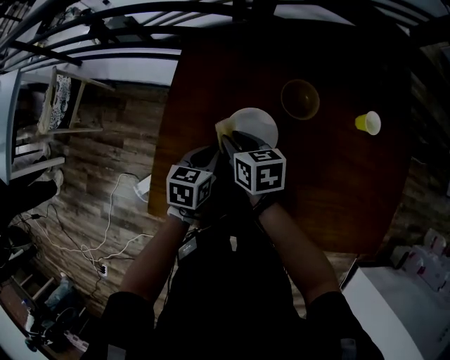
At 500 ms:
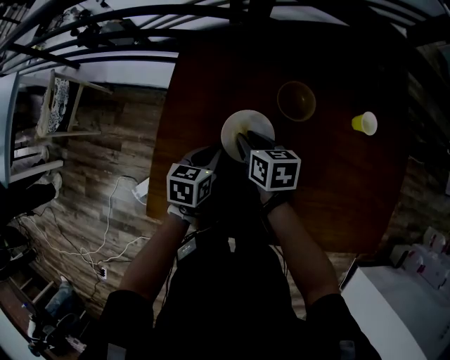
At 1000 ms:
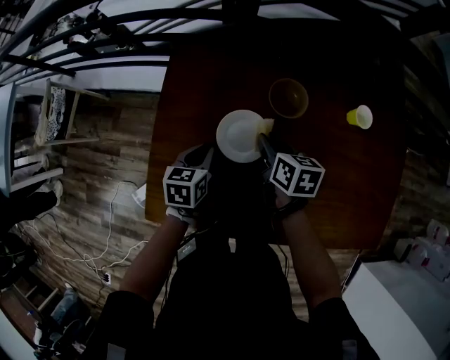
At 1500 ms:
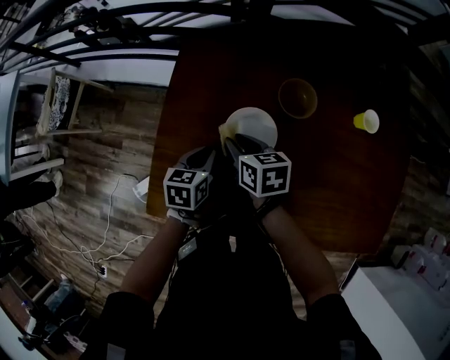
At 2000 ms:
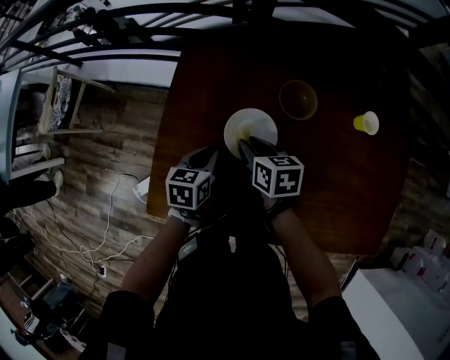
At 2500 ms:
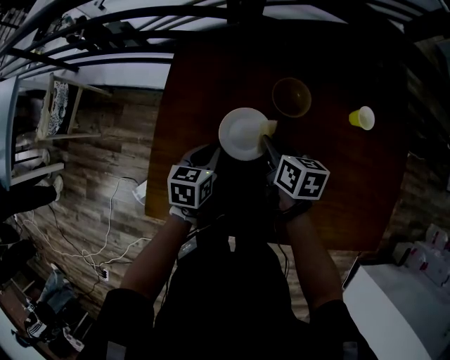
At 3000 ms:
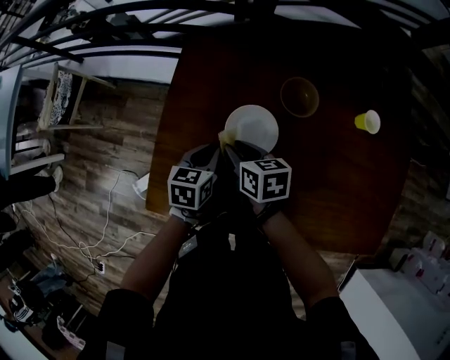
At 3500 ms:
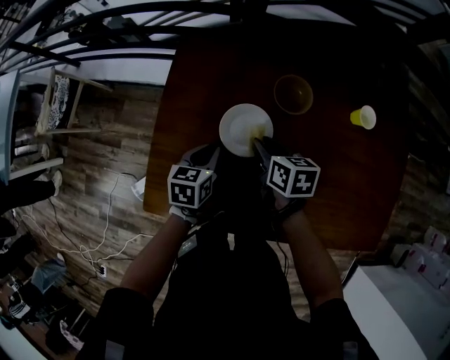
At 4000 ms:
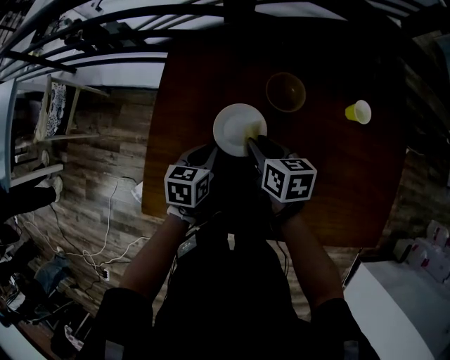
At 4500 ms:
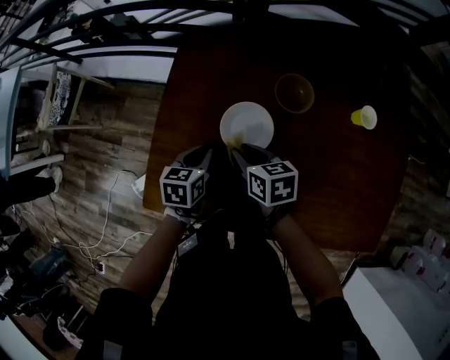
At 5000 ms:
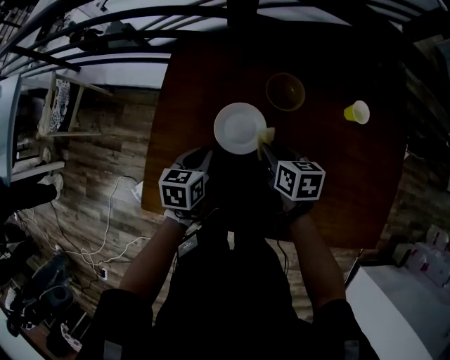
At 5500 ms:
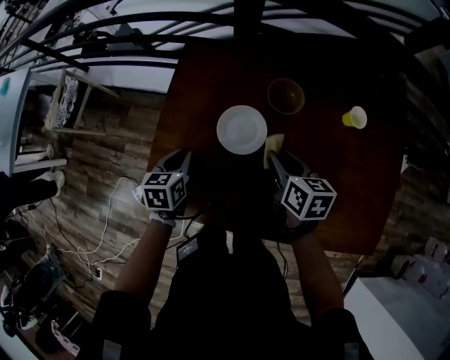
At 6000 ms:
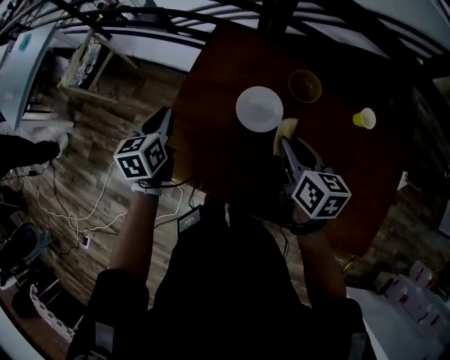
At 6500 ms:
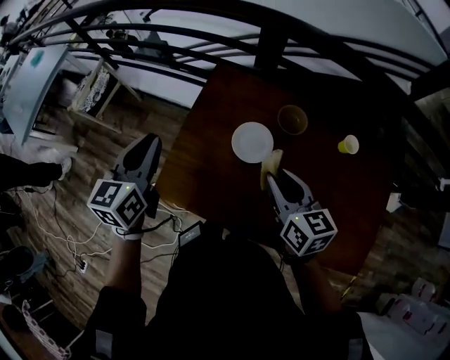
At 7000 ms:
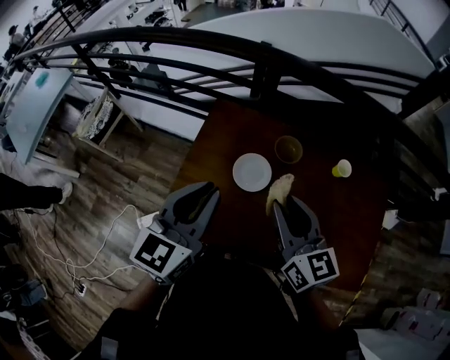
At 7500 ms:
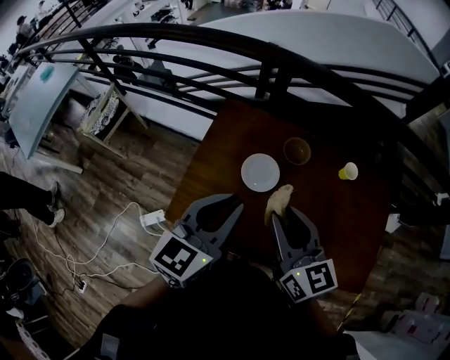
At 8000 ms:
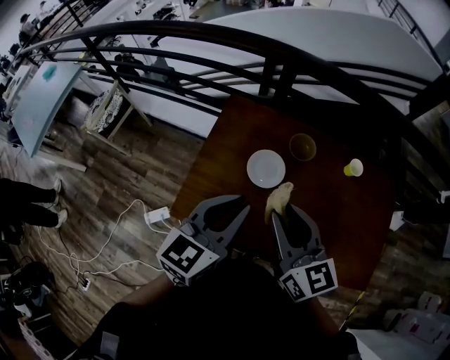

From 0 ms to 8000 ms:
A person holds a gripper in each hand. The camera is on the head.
From 2000 ms to 4000 ms: The right gripper swings left and right, roughly 10 cm each way, with 2 reversals.
From 4000 ms to 6000 ms: The left gripper is displaced to the left and upward by approximately 20 cm, and turns by roughly 30 degrees. Meanwhile the right gripper travels upward and backward by roughly 15 cm.
From 6000 ms to 8000 ms: The right gripper shifts roughly 25 cm upward, backward and to the left, and swivels about 30 degrees. Meanwhile the left gripper travels upward, to the right and backward by about 30 cm, and turns by some 40 degrees.

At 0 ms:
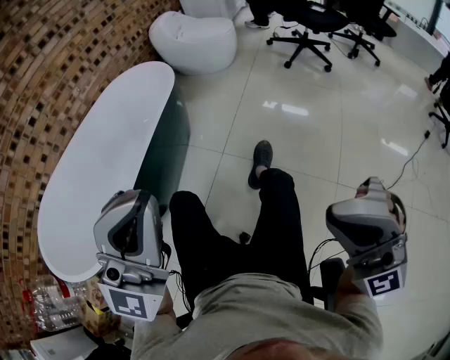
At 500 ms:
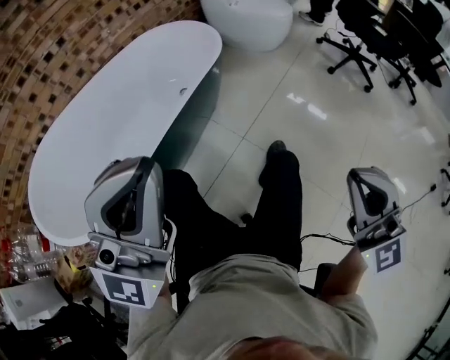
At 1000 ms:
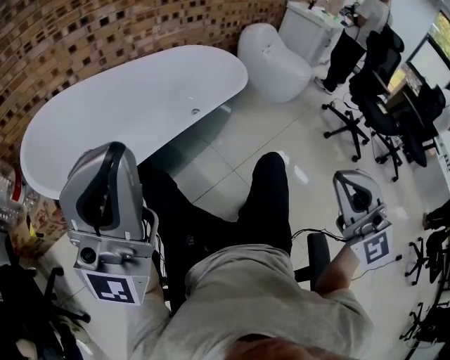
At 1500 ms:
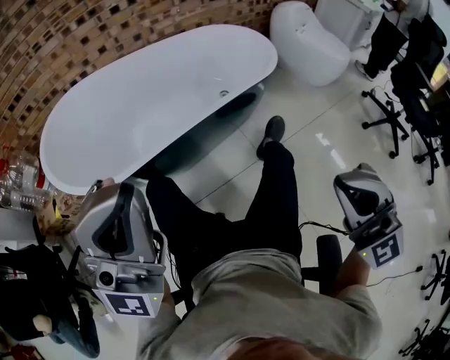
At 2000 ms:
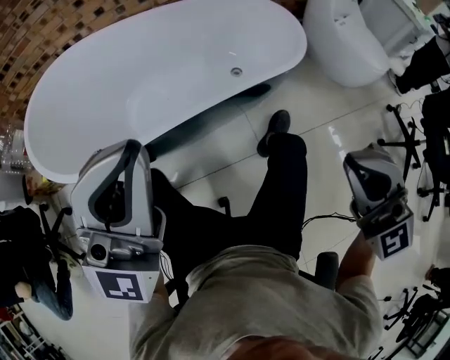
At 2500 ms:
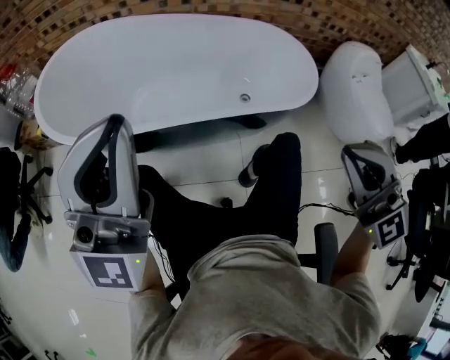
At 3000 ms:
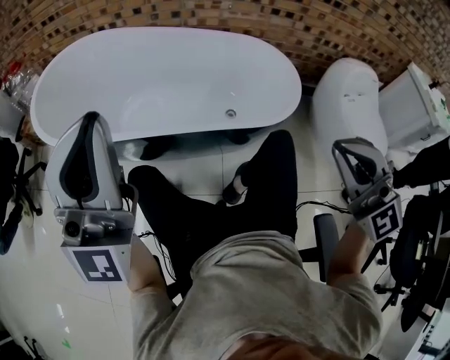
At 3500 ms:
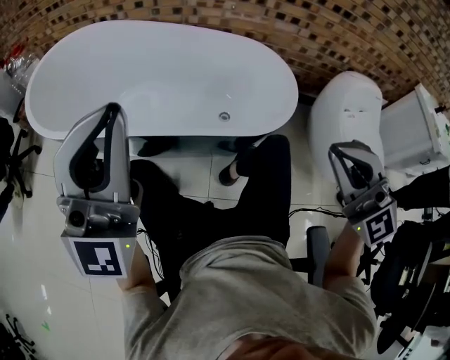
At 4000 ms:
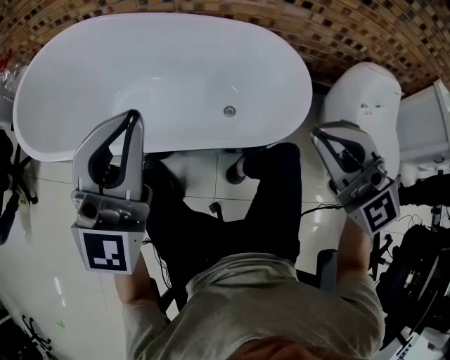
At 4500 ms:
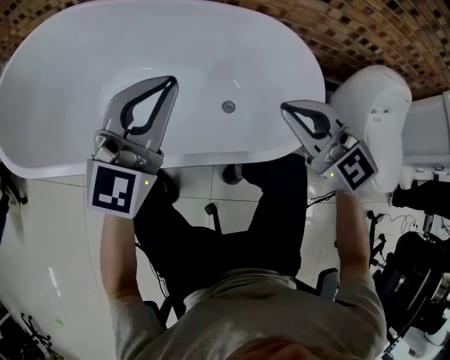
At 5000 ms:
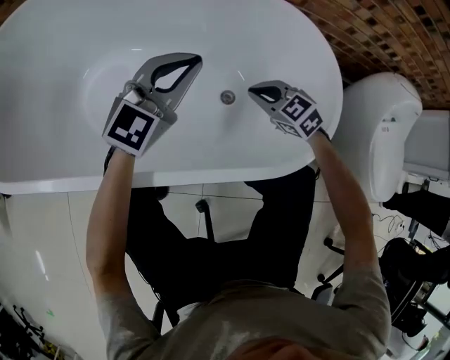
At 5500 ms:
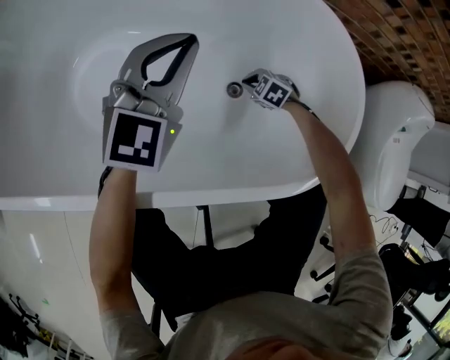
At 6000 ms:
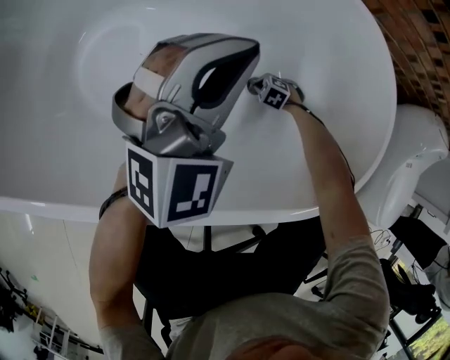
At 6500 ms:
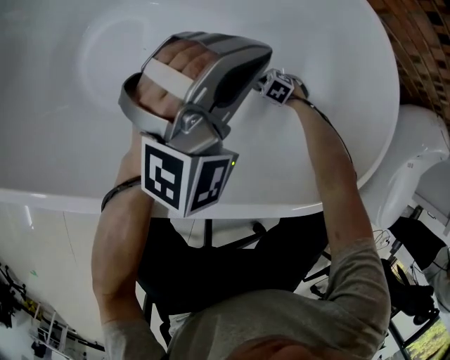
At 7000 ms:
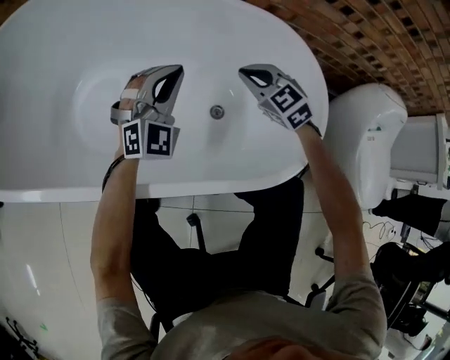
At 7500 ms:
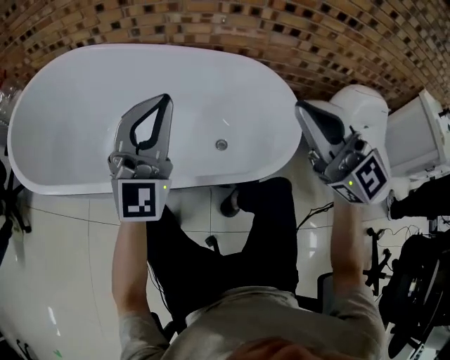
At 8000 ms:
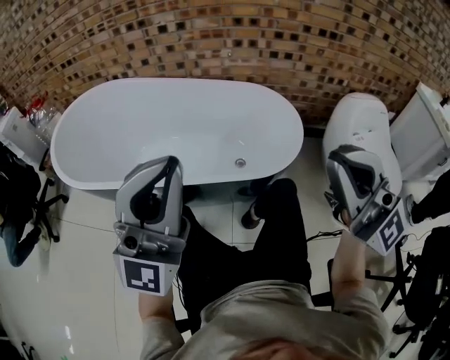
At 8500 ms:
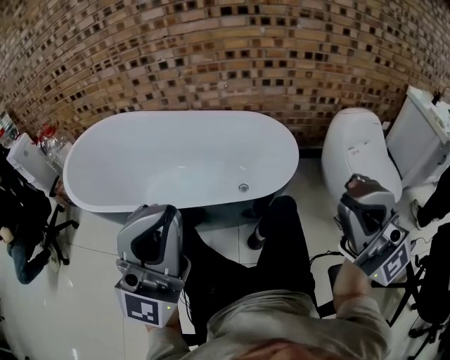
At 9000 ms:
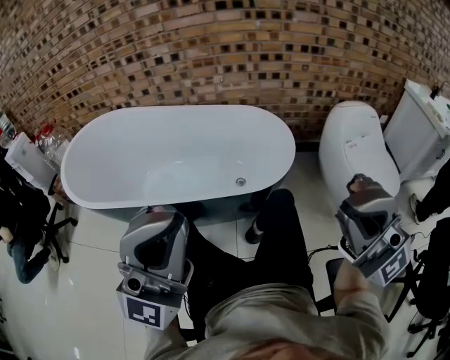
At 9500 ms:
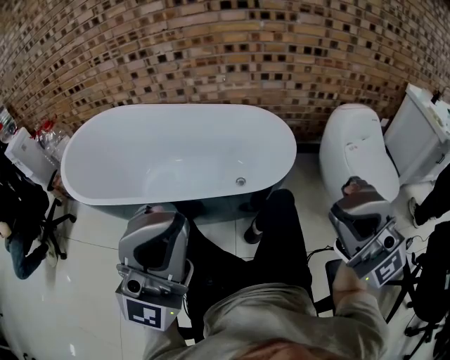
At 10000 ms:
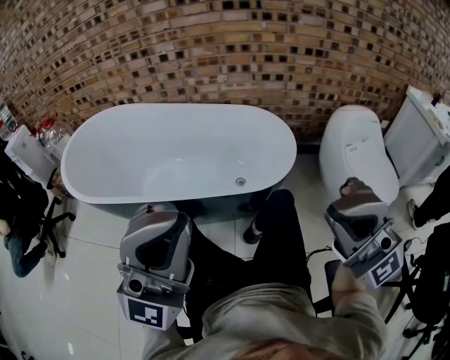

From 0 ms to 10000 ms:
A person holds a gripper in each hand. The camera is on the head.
From 0 ms to 2000 ms: The right gripper ends up approximately 40 cm from where it was, and swivels approximately 40 degrees. Meanwhile the left gripper ends up approximately 25 cm from where it was, and rotates roughly 50 degrees.
From 2000 ms to 4000 ms: The left gripper moves about 25 cm, and turns by about 30 degrees. The right gripper moves roughly 30 cm, and turns by approximately 30 degrees.
From 4000 ms to 6000 ms: The right gripper is displaced downward by roughly 80 cm, and points its fingers some 80 degrees further downward. The left gripper moves downward, some 30 cm, and rotates some 30 degrees.
From 6000 ms to 8000 ms: The two grippers travel together, some 40 cm. The left gripper tilts its fingers some 40 degrees upward. The right gripper shifts roughly 90 cm upward, and points its fingers about 110 degrees further upward.
From 8000 ms to 10000 ms: Both grippers move backward, about 10 cm.

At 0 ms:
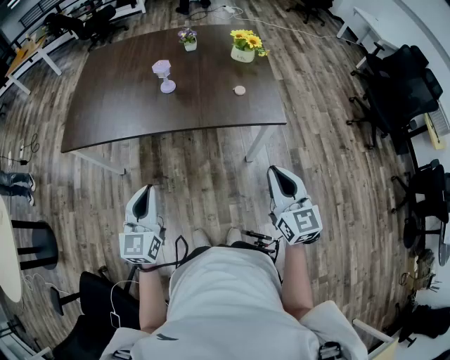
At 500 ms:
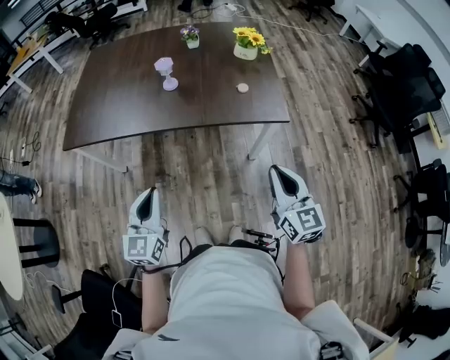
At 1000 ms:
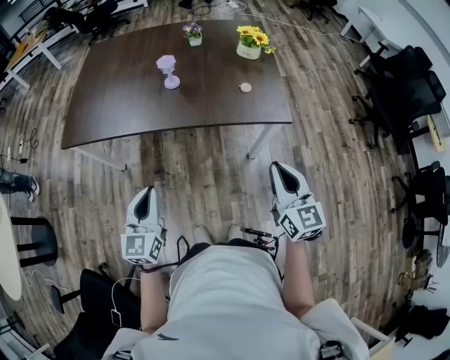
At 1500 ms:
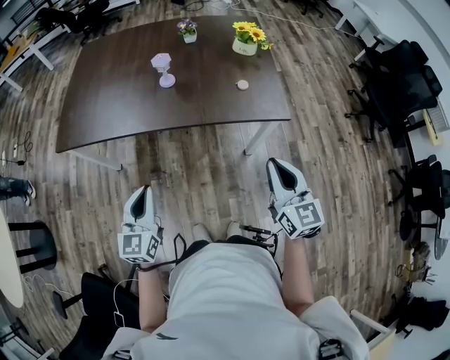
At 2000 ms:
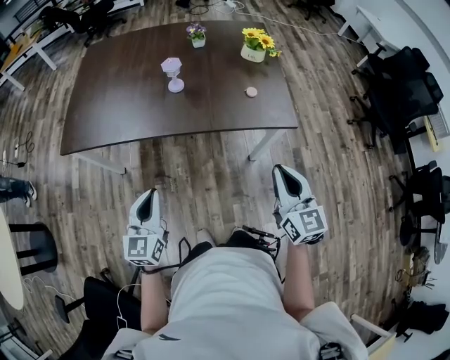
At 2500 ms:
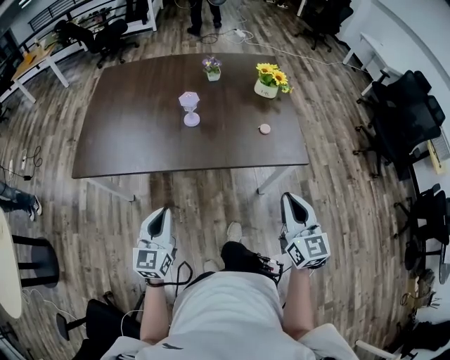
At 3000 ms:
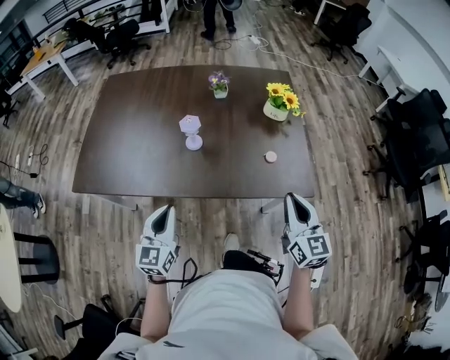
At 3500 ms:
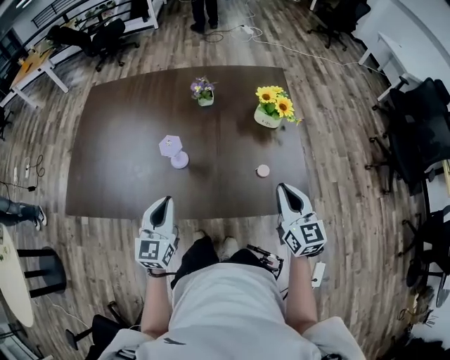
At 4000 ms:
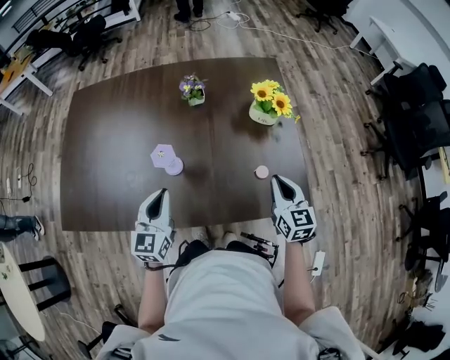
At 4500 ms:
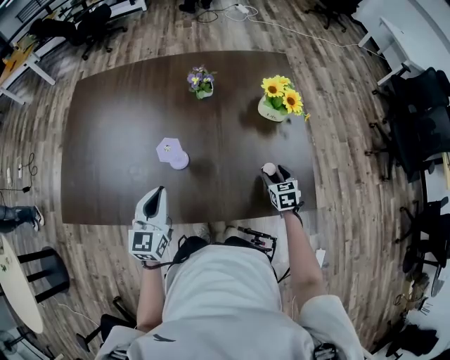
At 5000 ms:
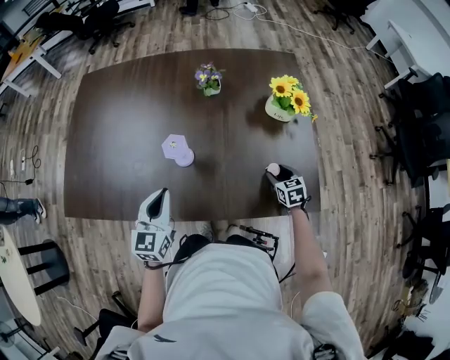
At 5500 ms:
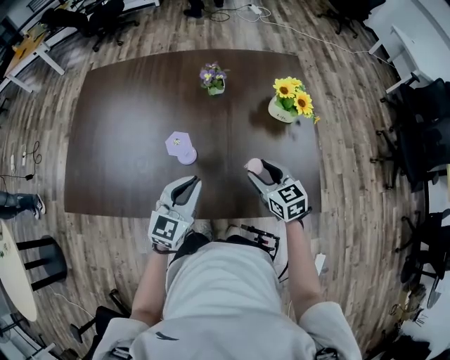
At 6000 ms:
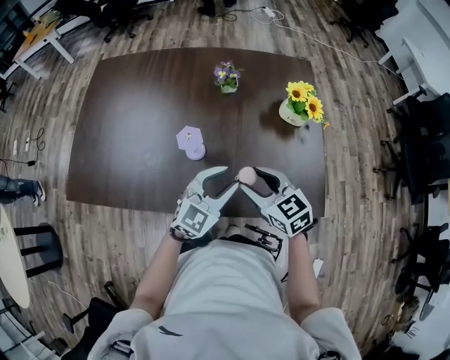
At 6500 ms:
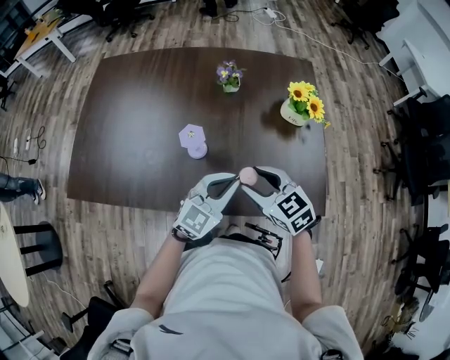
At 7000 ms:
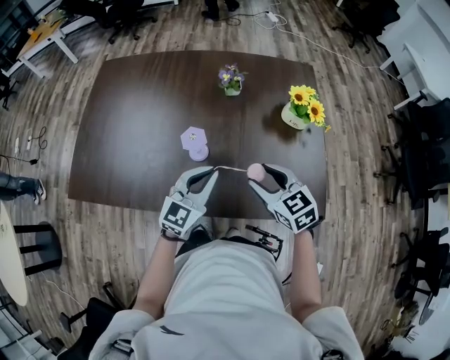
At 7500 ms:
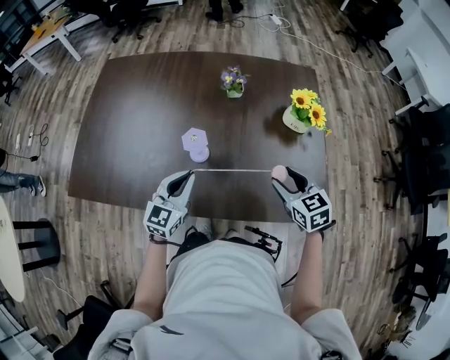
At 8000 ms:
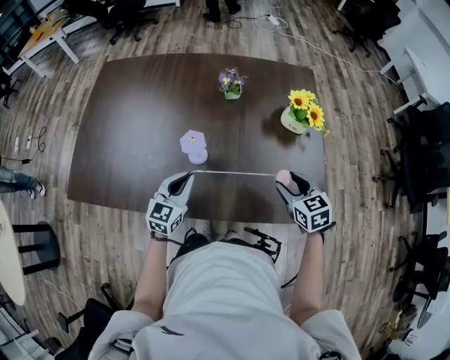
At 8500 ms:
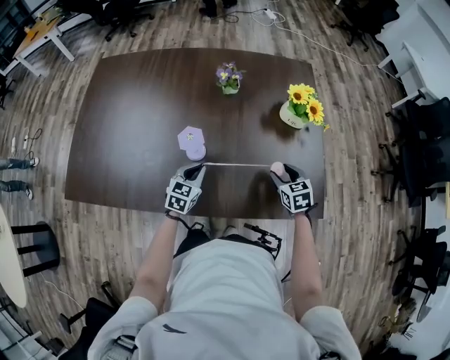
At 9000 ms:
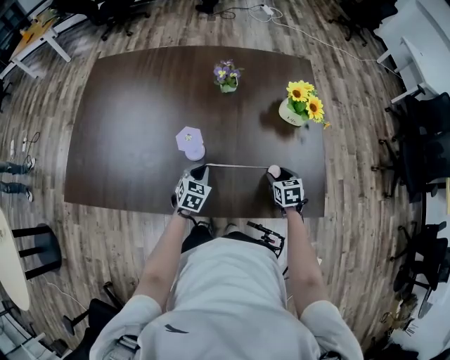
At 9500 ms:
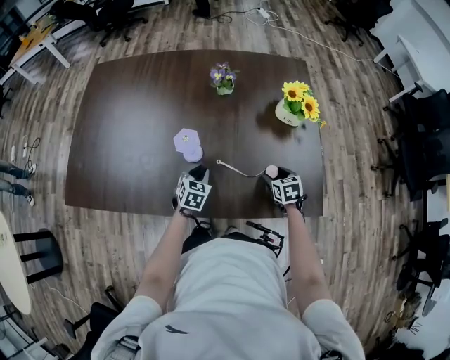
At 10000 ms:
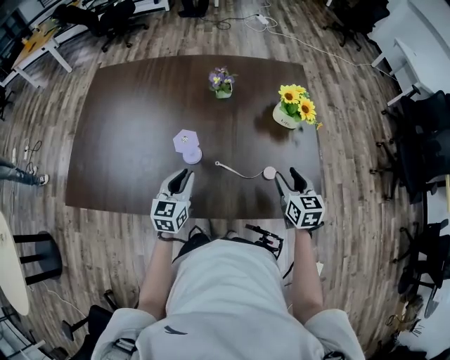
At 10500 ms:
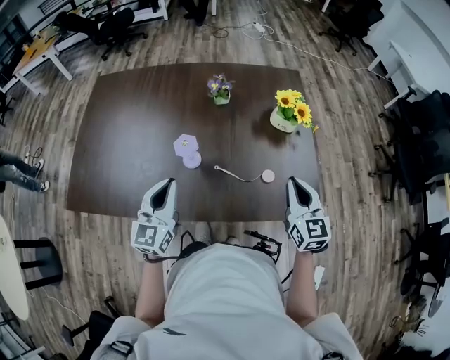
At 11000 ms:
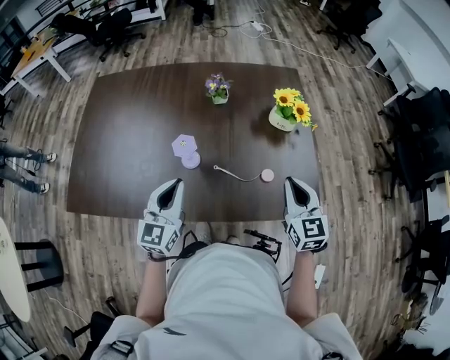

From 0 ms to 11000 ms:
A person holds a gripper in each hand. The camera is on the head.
From 0 ms to 2000 ms: The left gripper heads to the left, covering roughly 5 cm. Meanwhile the right gripper moves some 5 cm.
From 2000 ms to 3500 ms: Both grippers travel together forward, approximately 30 cm.
From 3500 ms to 5500 ms: The left gripper heads forward, covering some 10 cm, while the right gripper heads downward, to the left and forward, covering some 20 cm, swivels approximately 30 degrees, and opens its fingers.
From 5500 ms to 7500 ms: The right gripper goes to the left and returns, some 5 cm each way; the left gripper moves to the left, about 5 cm, and opens and closes again.
From 7500 ms to 9000 ms: Both grippers move downward, some 20 cm. The right gripper swivels approximately 30 degrees. The left gripper rotates some 30 degrees.
From 9000 ms to 11000 ms: The grippers both shift upward by about 25 cm. The right gripper tips its fingers upward by roughly 40 degrees, and closes its fingers. Meanwhile the left gripper angles its fingers upward, by about 40 degrees.
